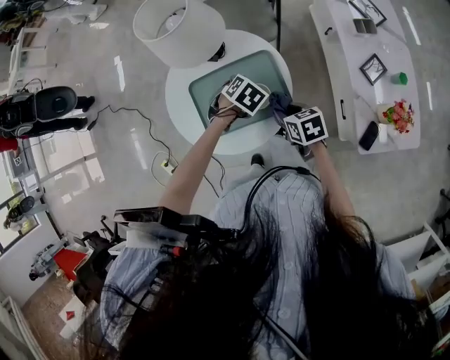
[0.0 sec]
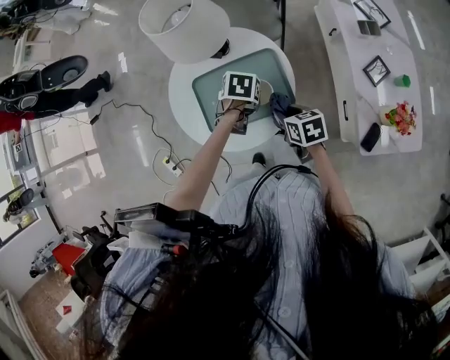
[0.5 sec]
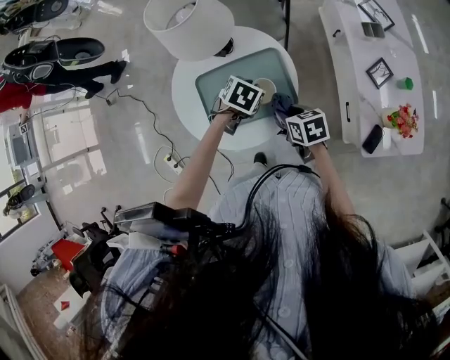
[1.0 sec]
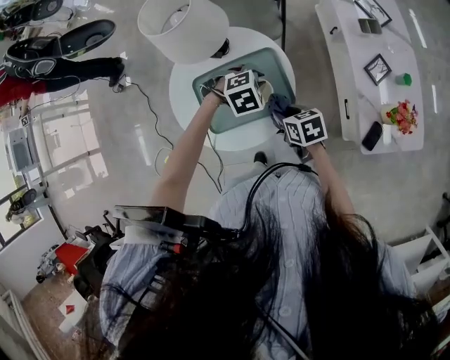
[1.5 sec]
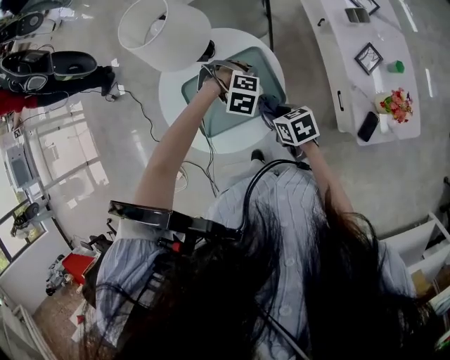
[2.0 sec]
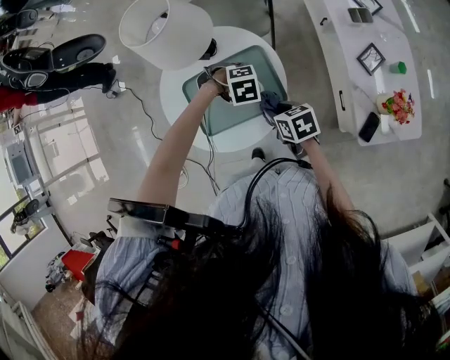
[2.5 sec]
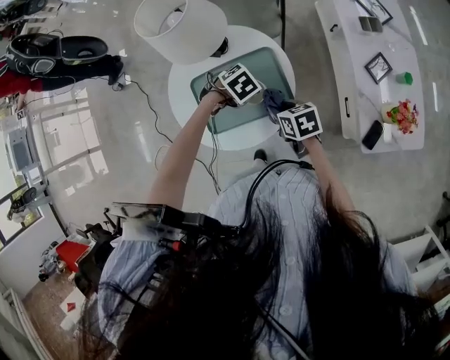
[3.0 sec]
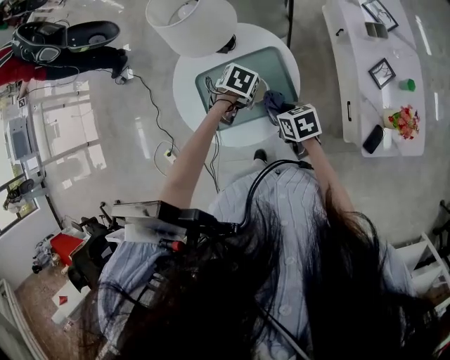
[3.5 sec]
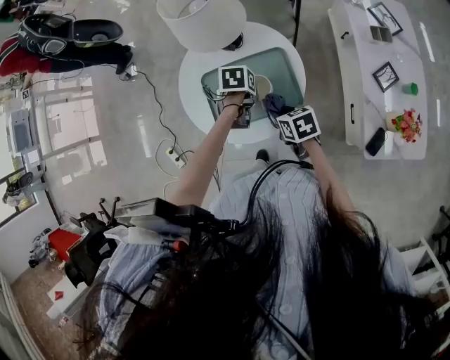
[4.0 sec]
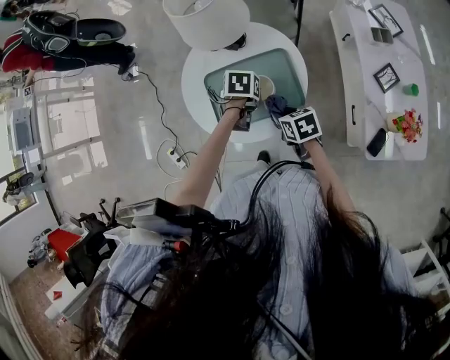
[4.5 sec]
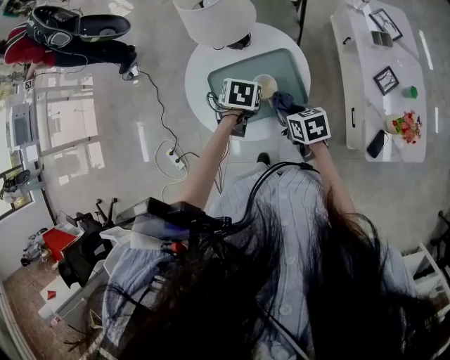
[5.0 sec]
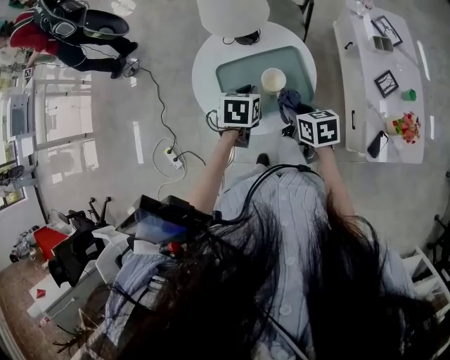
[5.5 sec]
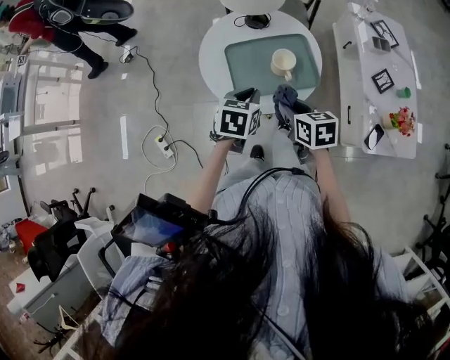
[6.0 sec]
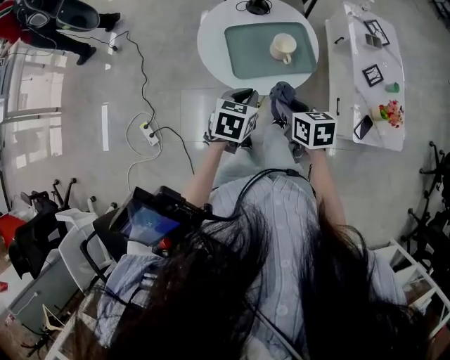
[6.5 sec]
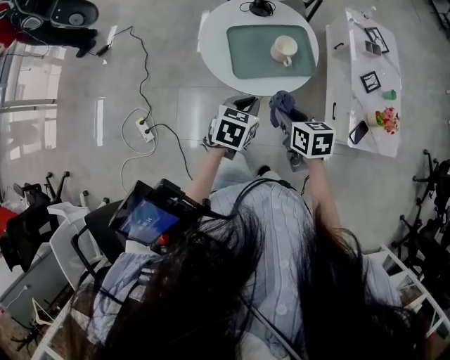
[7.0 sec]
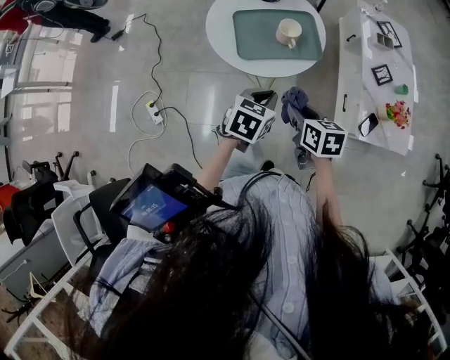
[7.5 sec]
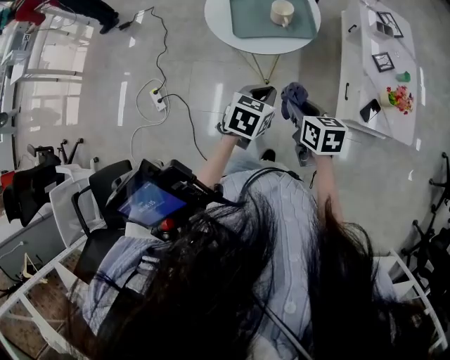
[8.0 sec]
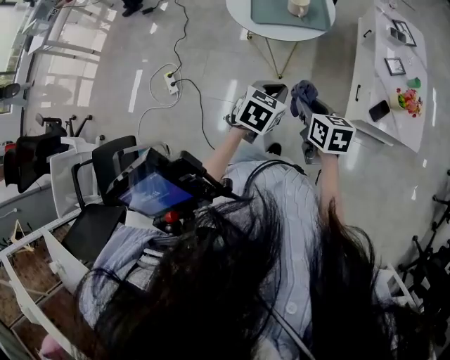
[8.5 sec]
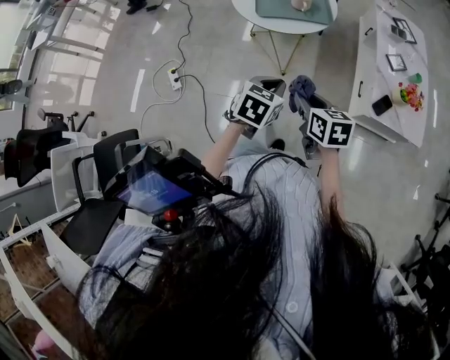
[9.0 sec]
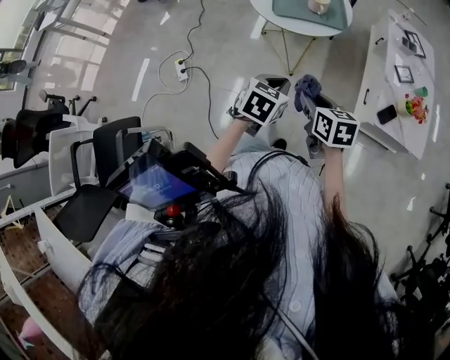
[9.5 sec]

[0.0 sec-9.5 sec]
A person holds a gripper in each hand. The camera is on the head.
0.0 sec to 2.0 sec: The left gripper twists approximately 70 degrees clockwise, seen from behind.
2.0 sec to 4.0 sec: The left gripper shifts by roughly 10 cm, and twists roughly 120 degrees counterclockwise, seen from behind.
4.0 sec to 5.5 sec: Both grippers travel together upward, approximately 10 cm. The left gripper swivels approximately 30 degrees.
5.5 sec to 7.5 sec: The grippers both shift backward by some 20 cm.
7.5 sec to 9.5 sec: The grippers both shift backward by some 20 cm.

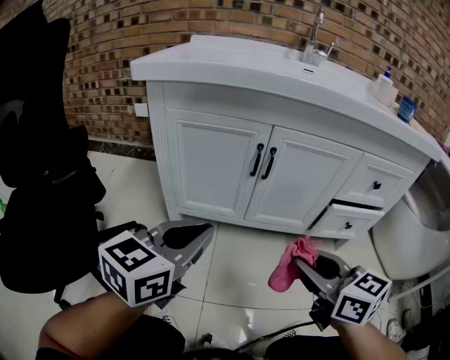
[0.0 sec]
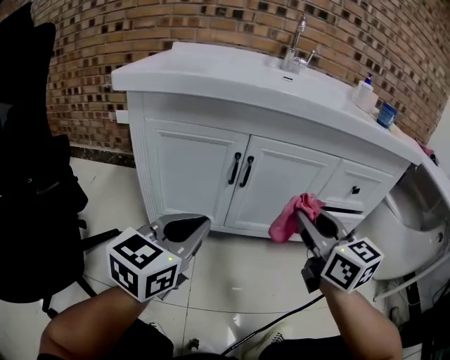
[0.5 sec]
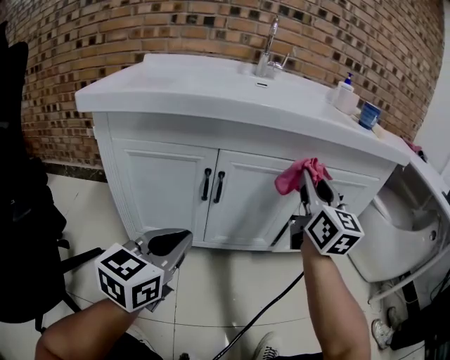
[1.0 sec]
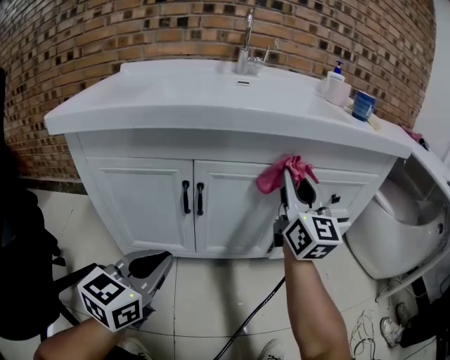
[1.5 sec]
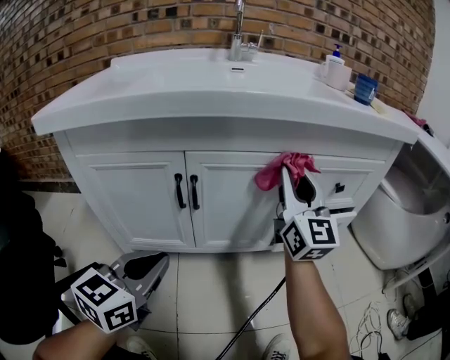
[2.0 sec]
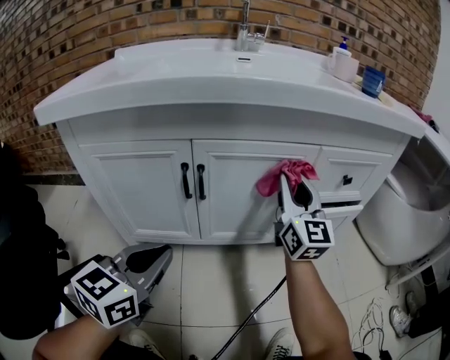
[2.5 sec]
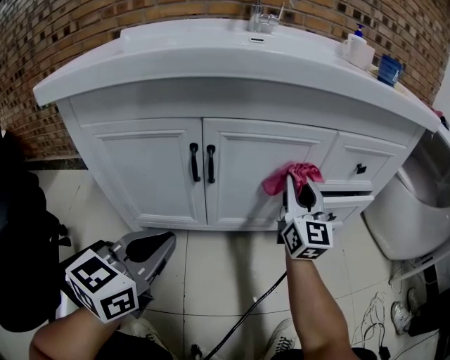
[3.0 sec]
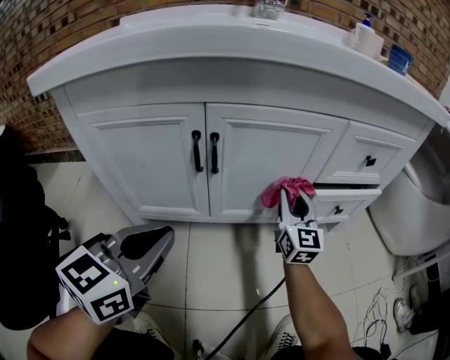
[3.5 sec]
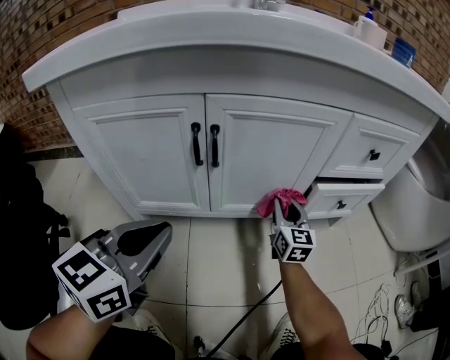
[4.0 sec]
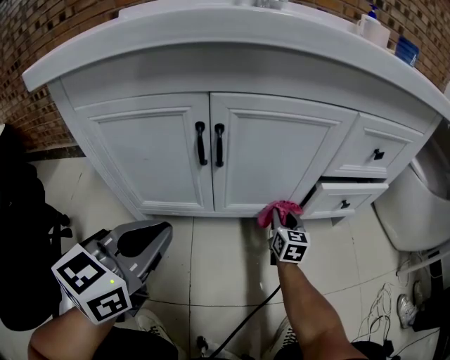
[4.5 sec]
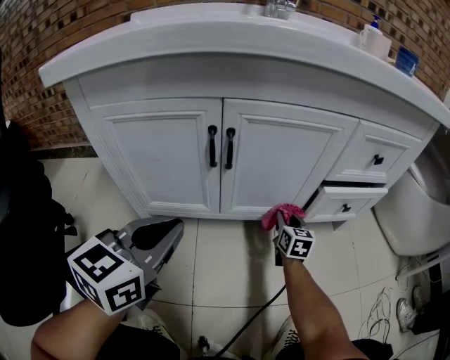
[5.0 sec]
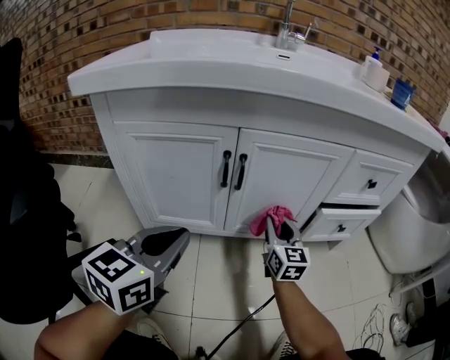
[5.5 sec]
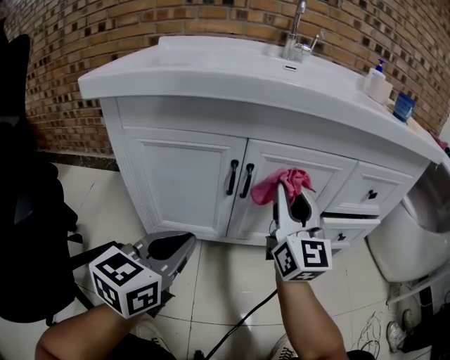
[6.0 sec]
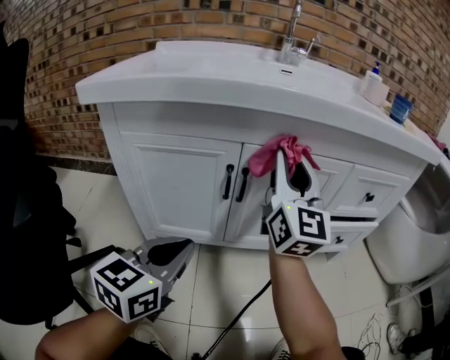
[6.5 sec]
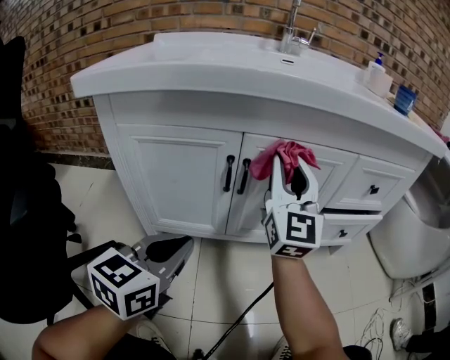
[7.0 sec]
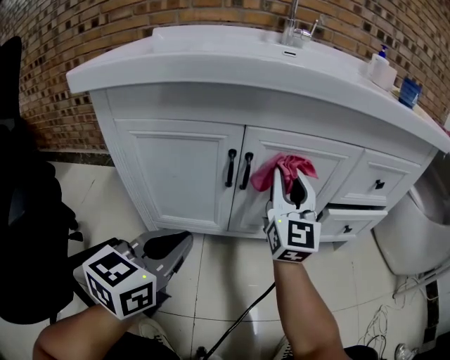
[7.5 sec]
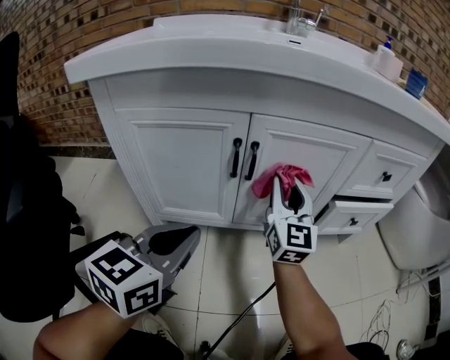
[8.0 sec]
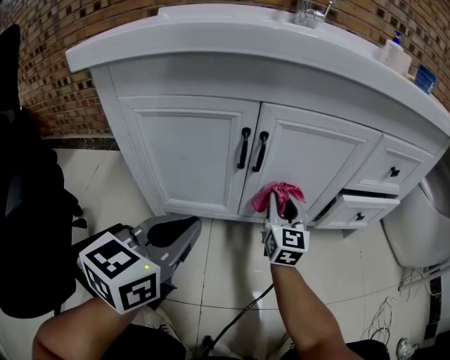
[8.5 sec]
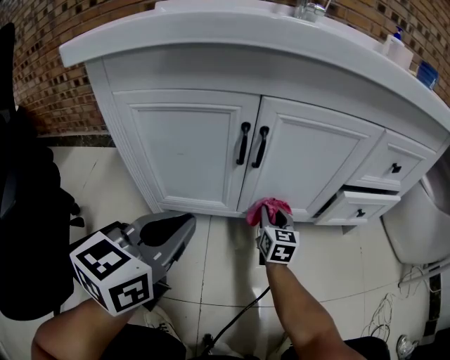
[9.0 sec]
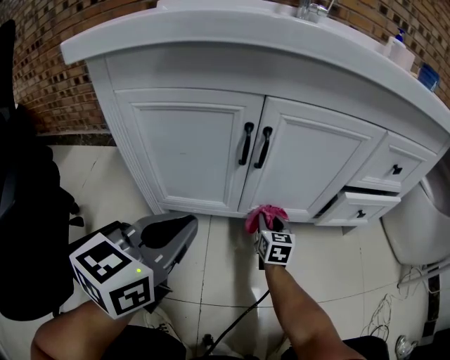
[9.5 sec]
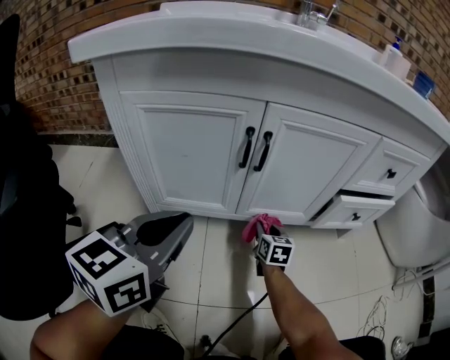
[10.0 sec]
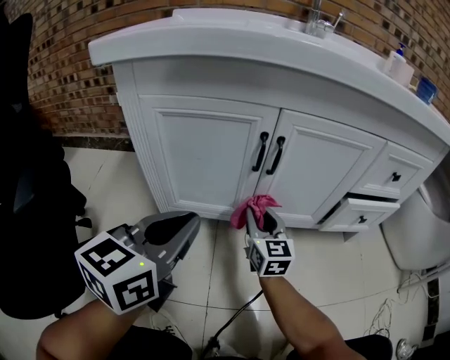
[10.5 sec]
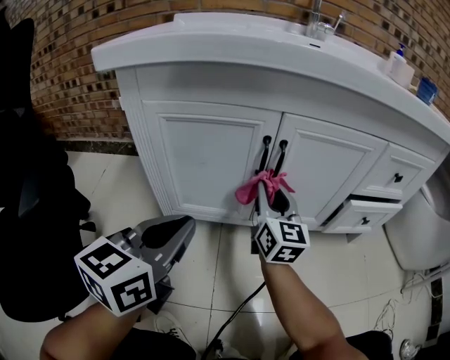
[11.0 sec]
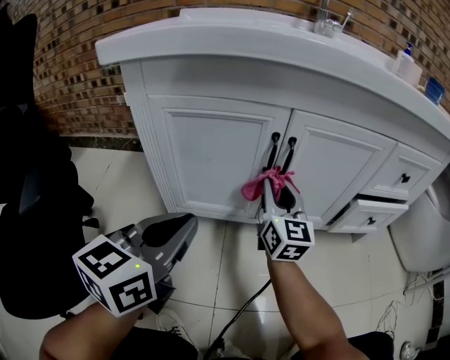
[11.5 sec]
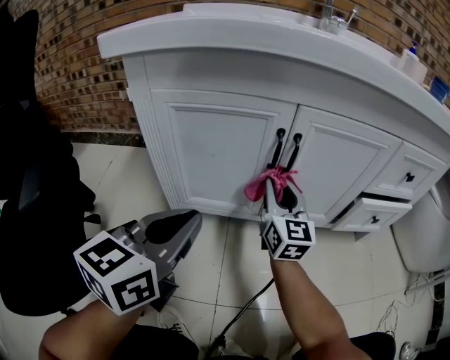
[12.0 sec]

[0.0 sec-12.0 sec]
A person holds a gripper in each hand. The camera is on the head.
0.0 sec to 2.0 sec: The right gripper moves forward, roughly 25 cm, and angles its fingers upward, by some 40 degrees. The left gripper moves forward, approximately 10 cm.
2.0 sec to 4.0 sec: The right gripper is displaced downward by about 30 cm, and rotates approximately 30 degrees.
4.0 sec to 6.0 sec: The right gripper is displaced upward by approximately 25 cm, and turns by some 30 degrees.
6.0 sec to 8.0 sec: The right gripper moves downward and forward, some 10 cm.
8.0 sec to 10.0 sec: The right gripper is displaced downward by roughly 30 cm, and tips its fingers downward by some 40 degrees.
10.0 sec to 12.0 sec: The right gripper heads upward and to the left, covering some 25 cm, and tips its fingers upward by some 30 degrees.

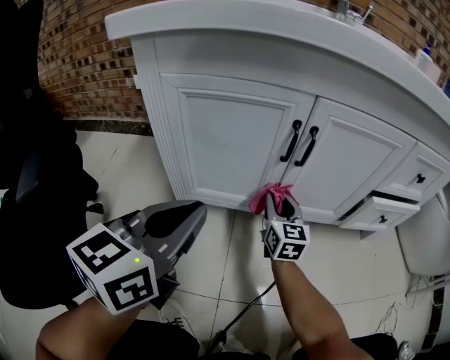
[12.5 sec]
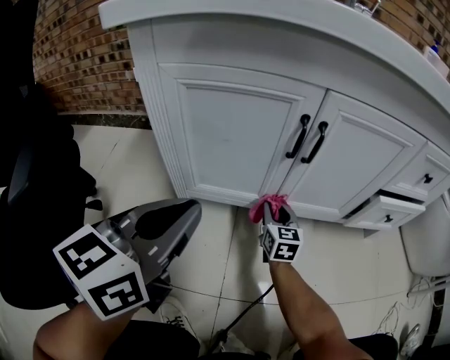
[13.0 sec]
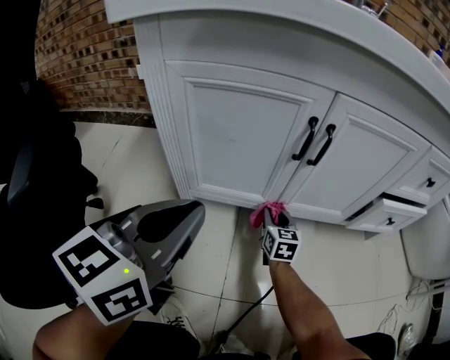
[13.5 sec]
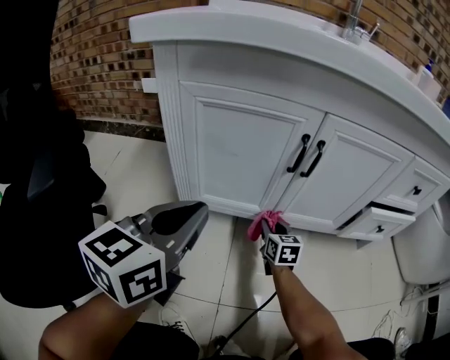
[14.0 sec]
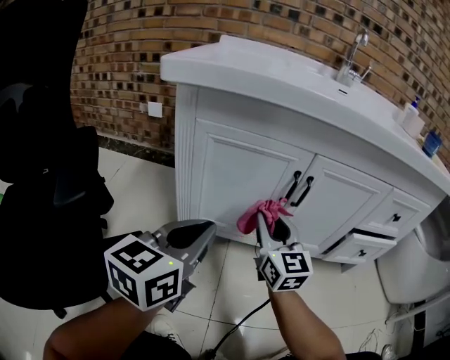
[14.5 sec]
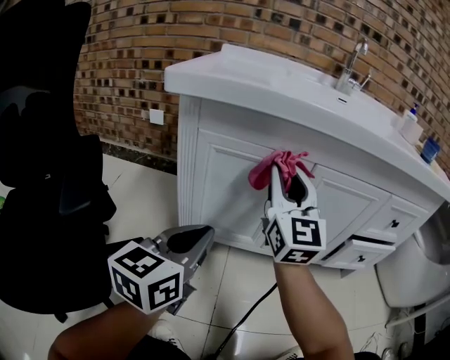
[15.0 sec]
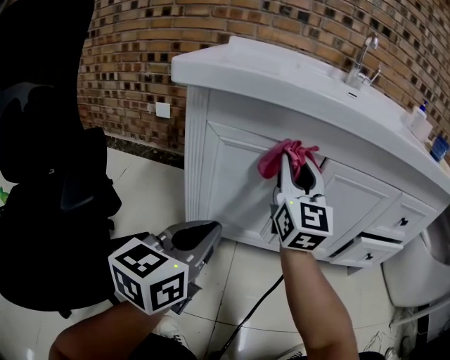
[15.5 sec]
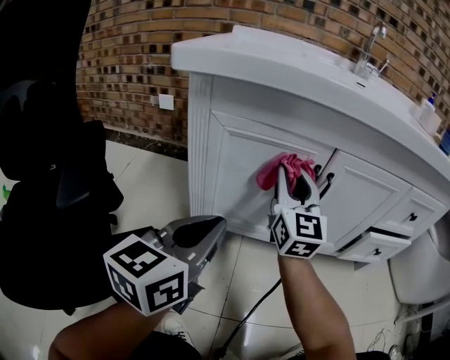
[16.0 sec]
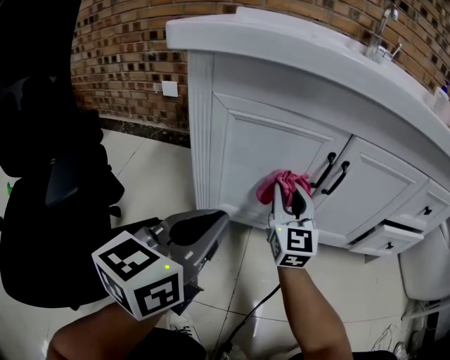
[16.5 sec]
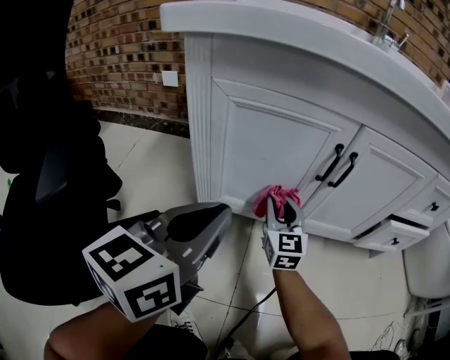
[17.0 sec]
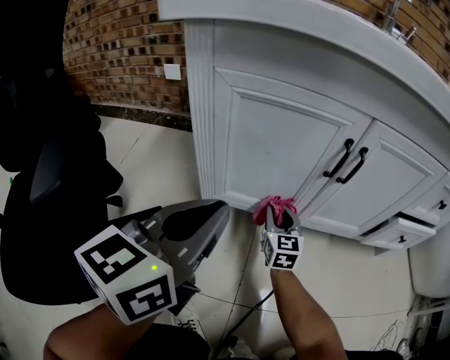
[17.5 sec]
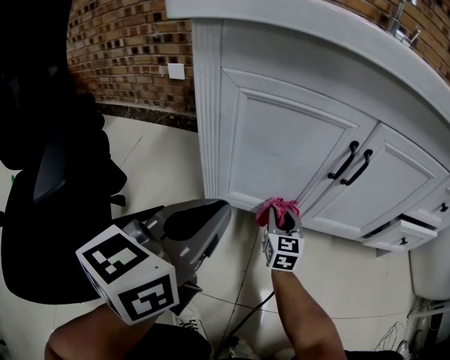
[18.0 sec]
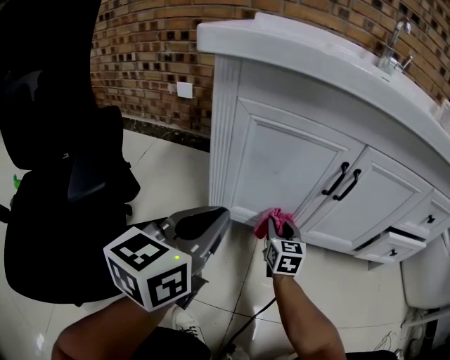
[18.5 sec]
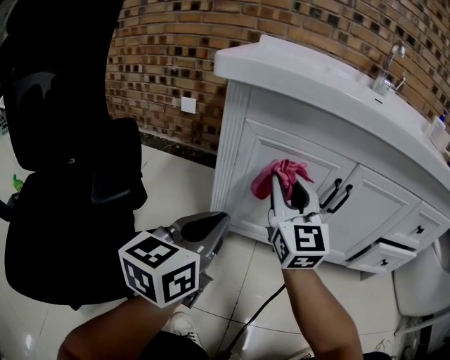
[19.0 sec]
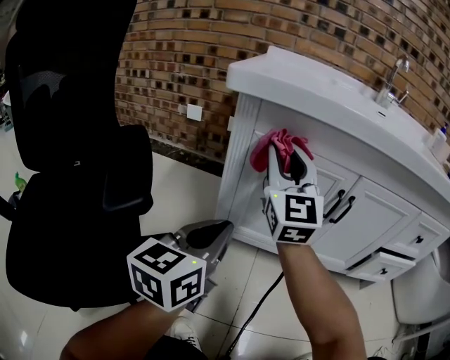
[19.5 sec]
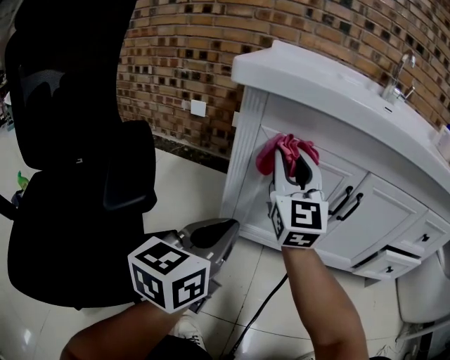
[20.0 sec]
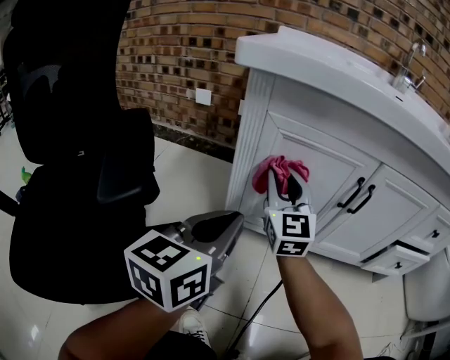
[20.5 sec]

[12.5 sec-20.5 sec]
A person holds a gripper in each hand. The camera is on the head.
12.5 sec to 14.5 sec: The right gripper moves upward and backward, roughly 15 cm.
14.5 sec to 16.5 sec: The right gripper travels forward by some 5 cm, and goes upward and returns, approximately 15 cm each way.
16.5 sec to 18.5 sec: The right gripper is displaced downward by approximately 15 cm, and turns by about 30 degrees.
18.5 sec to 20.5 sec: The right gripper moves upward and to the left, about 25 cm, and turns by some 30 degrees.
